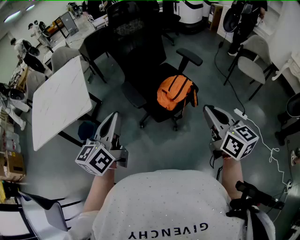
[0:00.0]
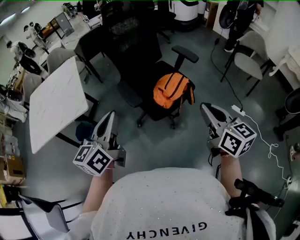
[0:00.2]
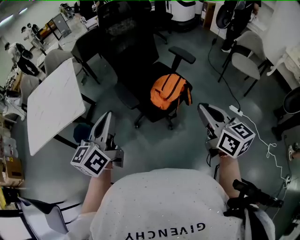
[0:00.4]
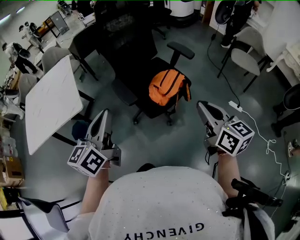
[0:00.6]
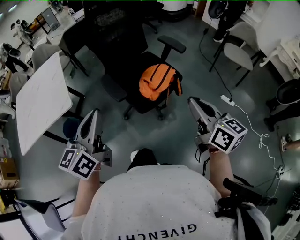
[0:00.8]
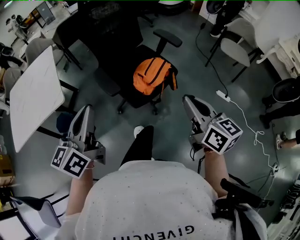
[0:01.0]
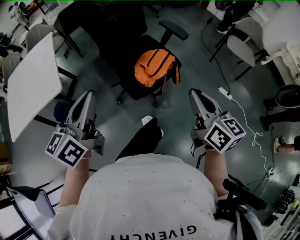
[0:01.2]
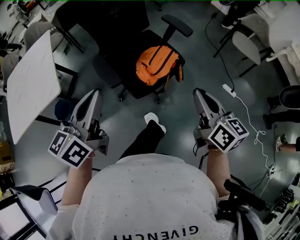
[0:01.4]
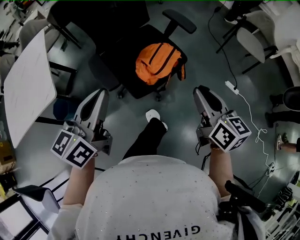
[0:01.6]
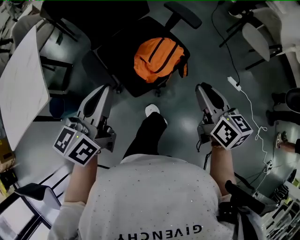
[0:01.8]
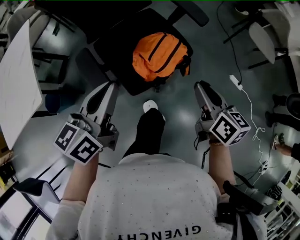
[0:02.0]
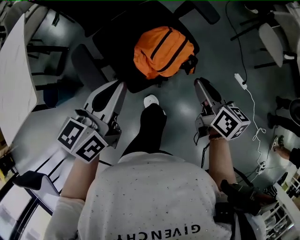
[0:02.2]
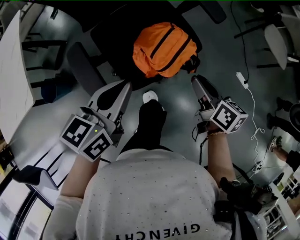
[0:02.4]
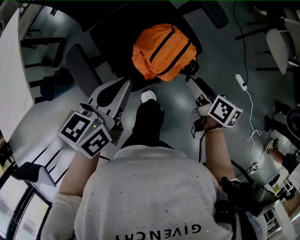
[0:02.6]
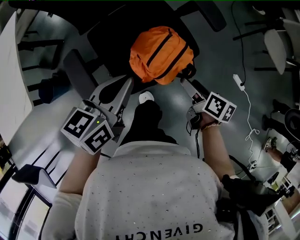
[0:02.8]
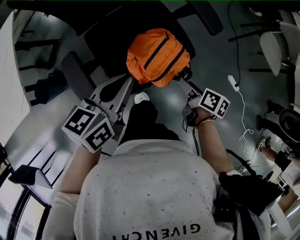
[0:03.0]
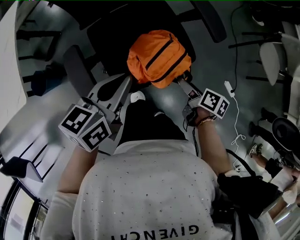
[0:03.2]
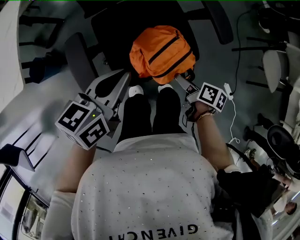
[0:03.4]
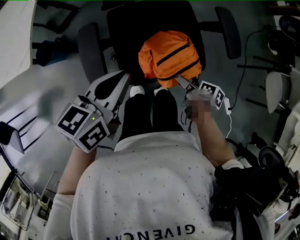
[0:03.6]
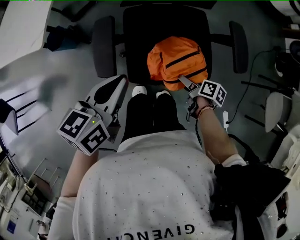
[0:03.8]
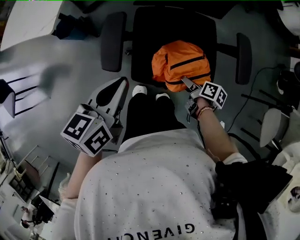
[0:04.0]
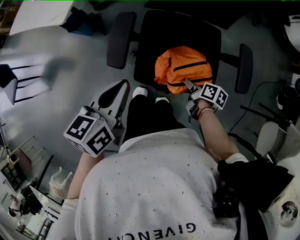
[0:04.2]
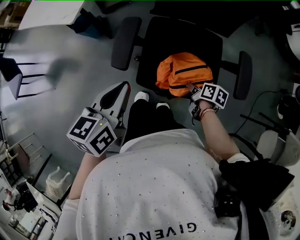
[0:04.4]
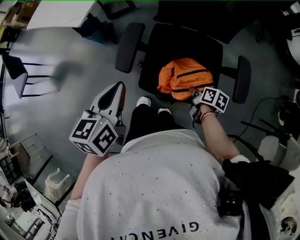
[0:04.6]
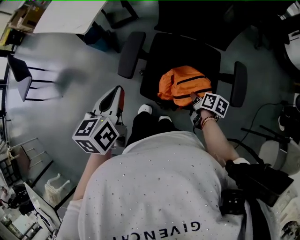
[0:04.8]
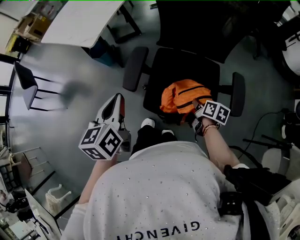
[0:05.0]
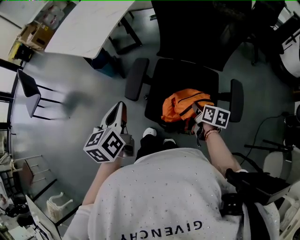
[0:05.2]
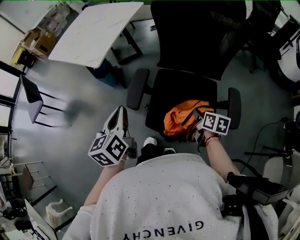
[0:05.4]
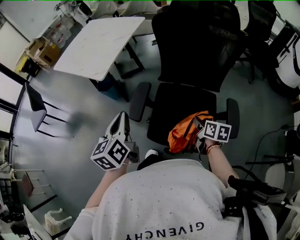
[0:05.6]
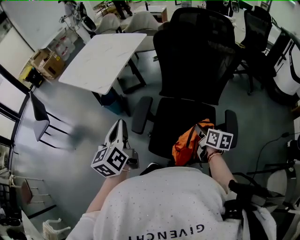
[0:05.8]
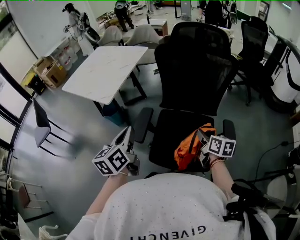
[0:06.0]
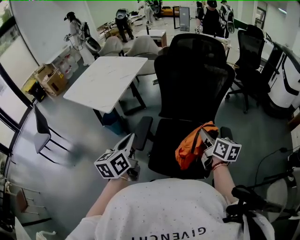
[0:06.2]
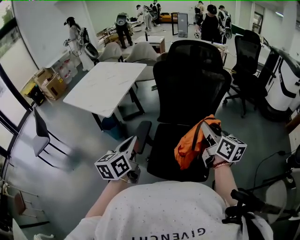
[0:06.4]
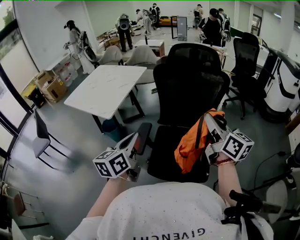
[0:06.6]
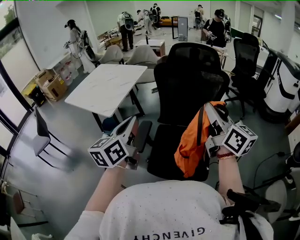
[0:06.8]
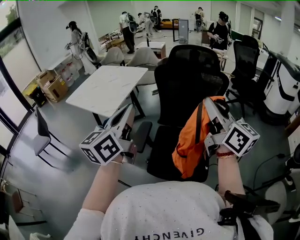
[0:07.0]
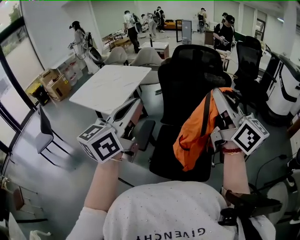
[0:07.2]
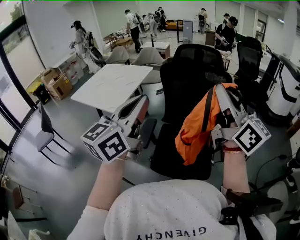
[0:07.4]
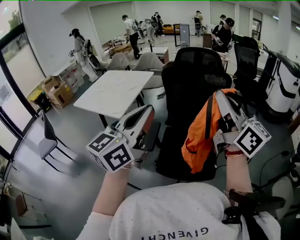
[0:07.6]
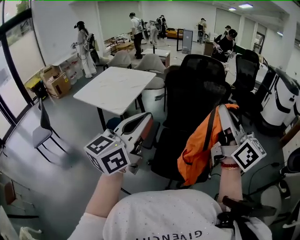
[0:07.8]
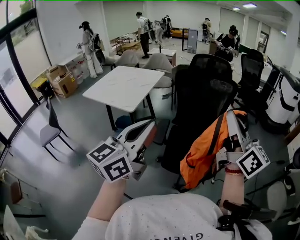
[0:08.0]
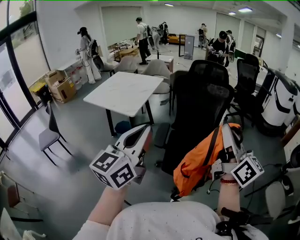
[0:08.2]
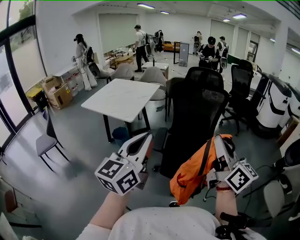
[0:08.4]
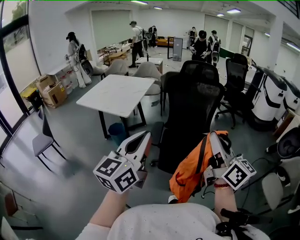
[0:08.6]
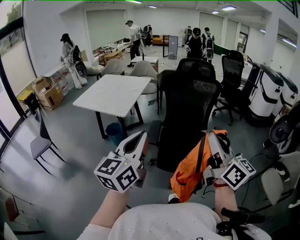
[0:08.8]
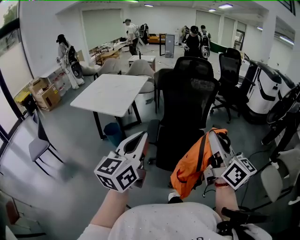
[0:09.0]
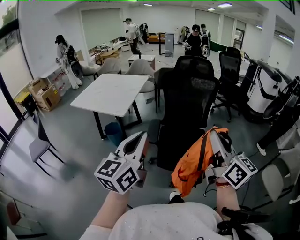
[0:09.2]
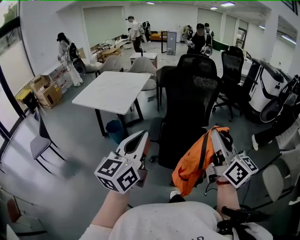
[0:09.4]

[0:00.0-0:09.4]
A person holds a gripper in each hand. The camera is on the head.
0:00.0 to 0:01.6: The left gripper shifts some 15 cm forward and to the right. The right gripper goes approximately 15 cm forward, downward and to the right.
0:01.6 to 0:03.2: The left gripper is displaced forward and downward by roughly 25 cm, and rotates roughly 20 degrees. The right gripper travels downward and forward by about 35 cm, rotates about 50 degrees, and opens.
0:03.2 to 0:04.8: The left gripper ends up some 15 cm from where it was, and turns by roughly 60 degrees; the right gripper changes place by some 10 cm, rotates approximately 40 degrees, and closes.
0:04.8 to 0:06.2: The left gripper is displaced upward by approximately 10 cm, while the right gripper is displaced upward by roughly 30 cm, and angles its fingers upward, by about 30 degrees.
0:06.2 to 0:07.8: Both grippers travel together upward and backward, about 30 cm. The left gripper changes its angle by about 40 degrees. Meanwhile the right gripper points its fingers approximately 40 degrees further upward.
0:07.8 to 0:09.4: The grippers both shift backward and to the left by approximately 15 cm.

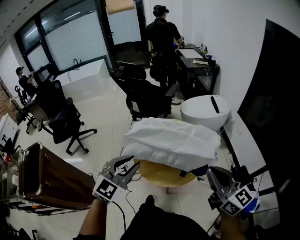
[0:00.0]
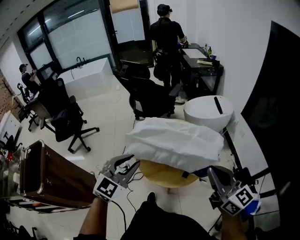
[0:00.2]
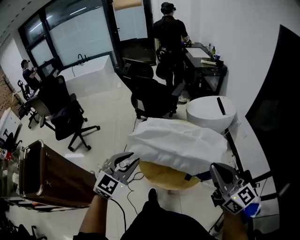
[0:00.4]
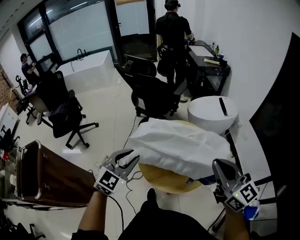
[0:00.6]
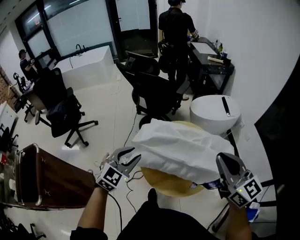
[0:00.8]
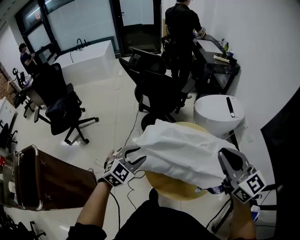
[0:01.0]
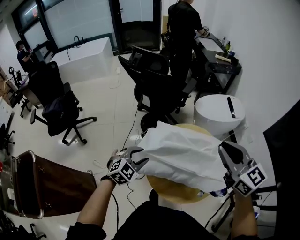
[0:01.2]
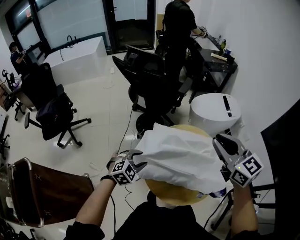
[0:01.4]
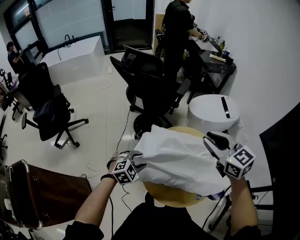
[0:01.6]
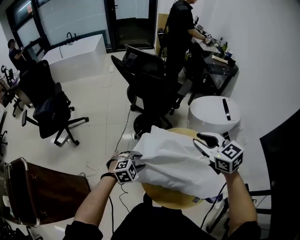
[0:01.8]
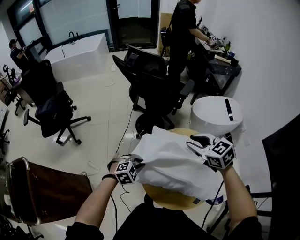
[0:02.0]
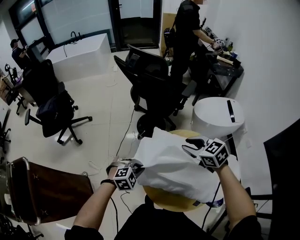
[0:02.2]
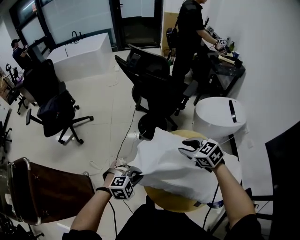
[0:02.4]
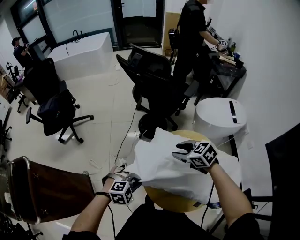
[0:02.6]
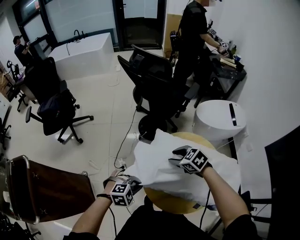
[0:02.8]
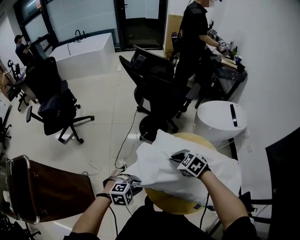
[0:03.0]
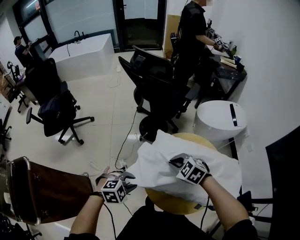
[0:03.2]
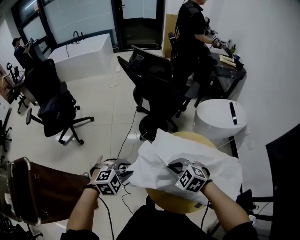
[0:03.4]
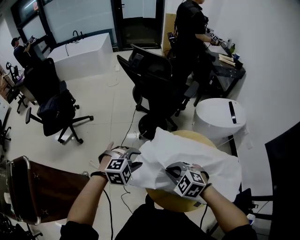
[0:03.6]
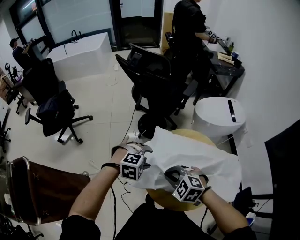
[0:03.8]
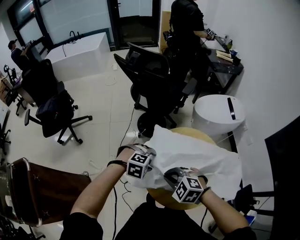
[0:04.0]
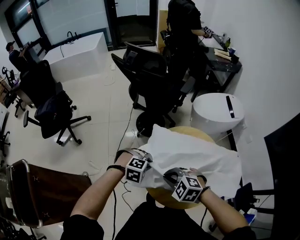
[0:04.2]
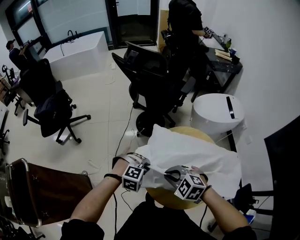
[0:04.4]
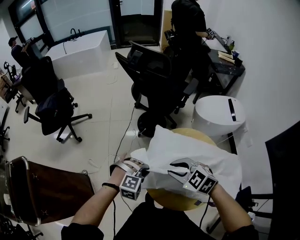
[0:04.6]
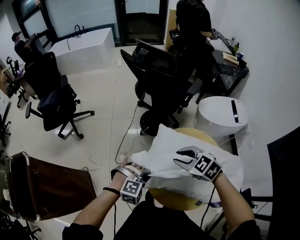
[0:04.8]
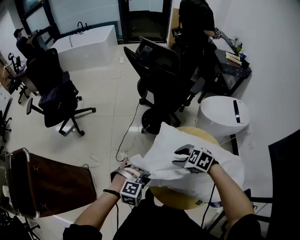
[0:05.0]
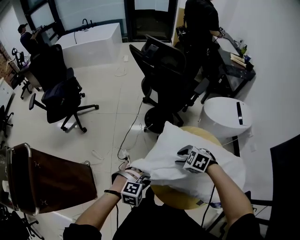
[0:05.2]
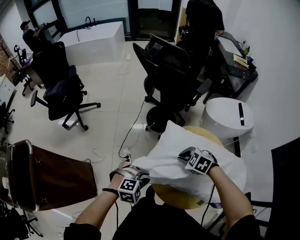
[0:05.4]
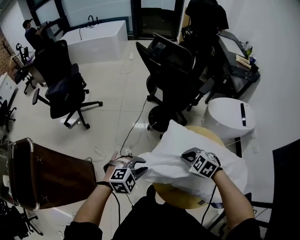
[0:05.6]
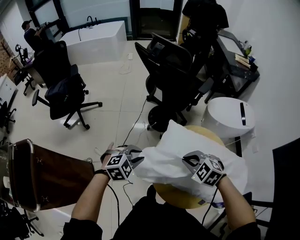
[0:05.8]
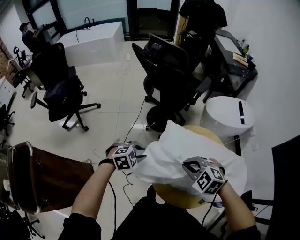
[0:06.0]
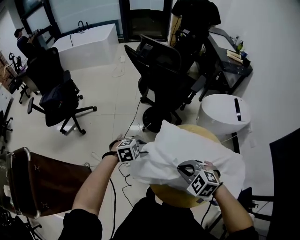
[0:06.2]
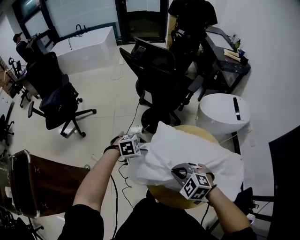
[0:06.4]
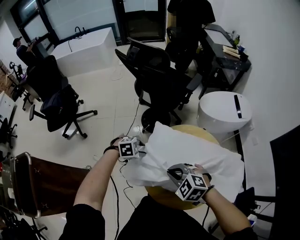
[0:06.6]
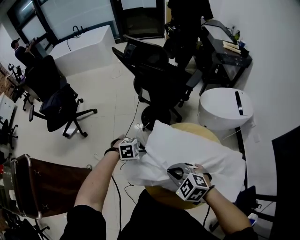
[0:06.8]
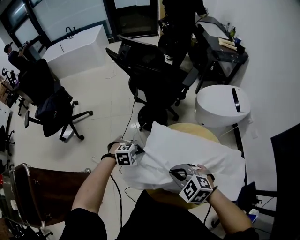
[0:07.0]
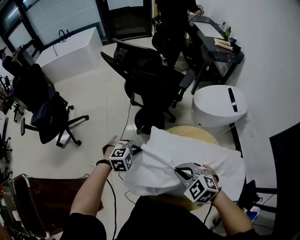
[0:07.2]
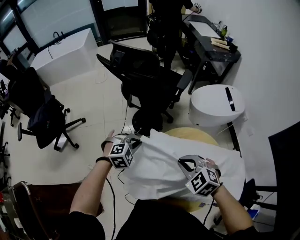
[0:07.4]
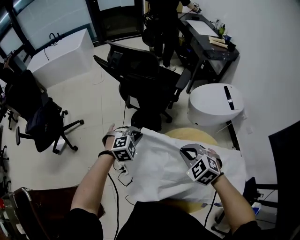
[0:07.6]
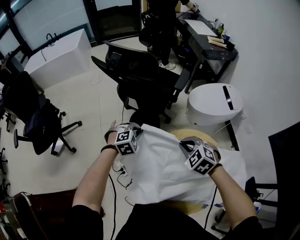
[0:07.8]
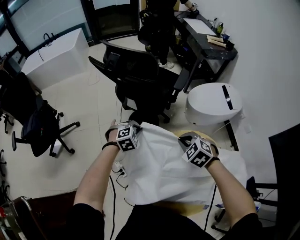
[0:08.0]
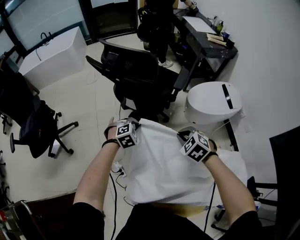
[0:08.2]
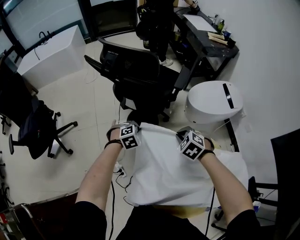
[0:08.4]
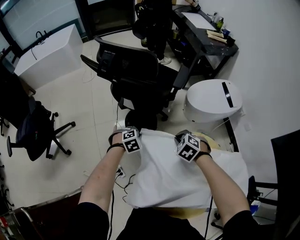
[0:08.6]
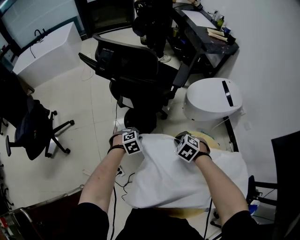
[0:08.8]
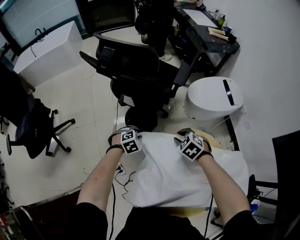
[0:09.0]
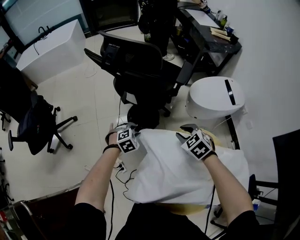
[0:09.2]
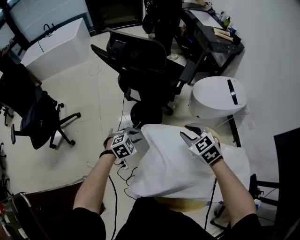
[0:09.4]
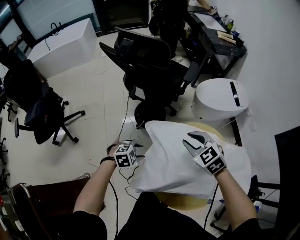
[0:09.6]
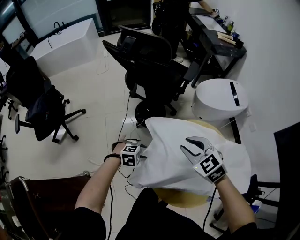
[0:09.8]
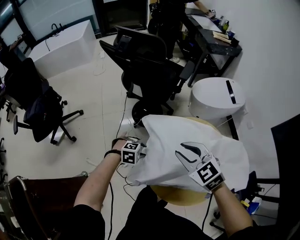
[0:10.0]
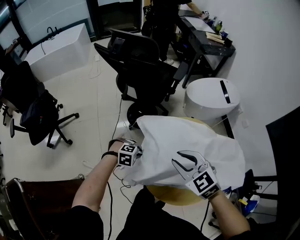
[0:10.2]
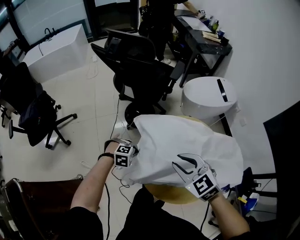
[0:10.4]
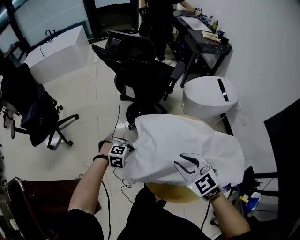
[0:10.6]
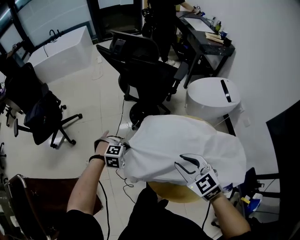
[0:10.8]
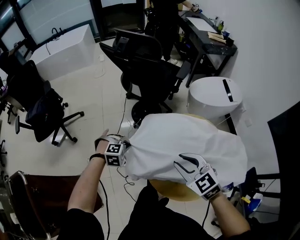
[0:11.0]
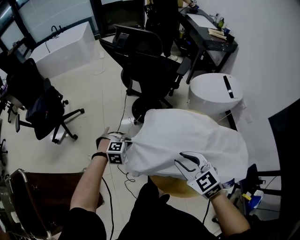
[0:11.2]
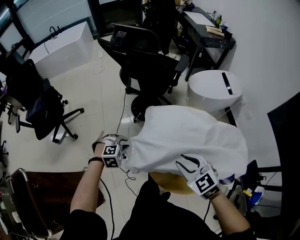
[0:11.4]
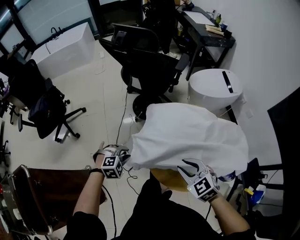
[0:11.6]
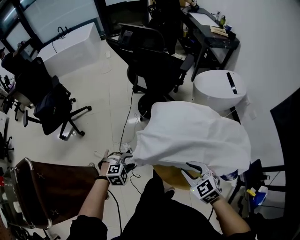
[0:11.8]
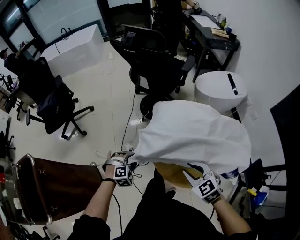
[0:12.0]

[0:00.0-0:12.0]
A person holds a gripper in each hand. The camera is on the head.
0:00.0 to 0:01.6: The left gripper is displaced downward, forward and to the left by about 35 cm, tilts its fingers approximately 40 degrees downward, and opens its fingers, while the right gripper moves forward and to the left, roughly 35 cm, turns by some 30 degrees, and opens up.
0:01.6 to 0:03.0: The left gripper shifts by some 10 cm, and closes, while the right gripper moves downward, roughly 25 cm, points its fingers some 40 degrees further downward, and opens, then closes again.
0:03.0 to 0:04.4: The right gripper ends up about 10 cm from where it was; the left gripper goes upward and returns, about 10 cm each way, turns by about 30 degrees, and opens, then closes again.
0:04.4 to 0:06.0: The left gripper moves approximately 10 cm, and changes its angle by approximately 30 degrees. The right gripper goes up and down, about 10 cm each way, reversing 2 times, and opens, then closes once more.
0:06.0 to 0:07.6: The left gripper moves about 20 cm, and closes its fingers. The right gripper shifts by some 15 cm, and swivels approximately 20 degrees.
0:07.6 to 0:09.0: The grippers both shift downward and forward by approximately 20 cm. The left gripper opens, while the right gripper opens its fingers.
0:09.0 to 0:10.4: The right gripper shifts by approximately 30 cm, and turns by some 30 degrees; the left gripper moves approximately 25 cm, rotates some 30 degrees, and closes.
0:10.4 to 0:12.0: The left gripper changes place by about 15 cm, swivels roughly 30 degrees, and opens its fingers; the right gripper moves about 15 cm.

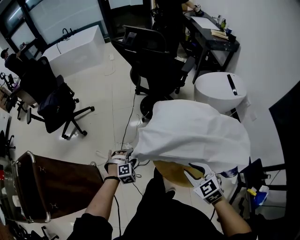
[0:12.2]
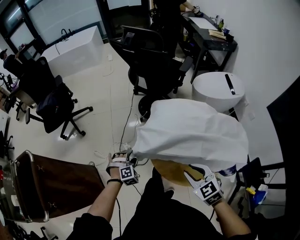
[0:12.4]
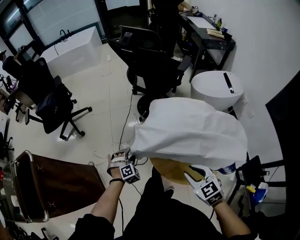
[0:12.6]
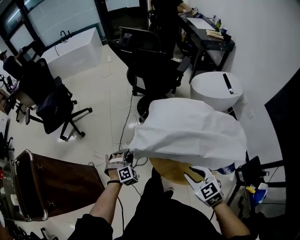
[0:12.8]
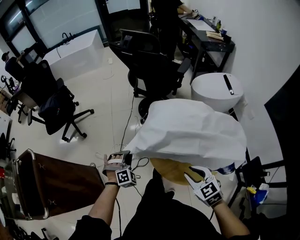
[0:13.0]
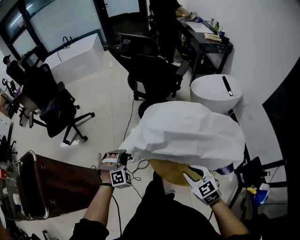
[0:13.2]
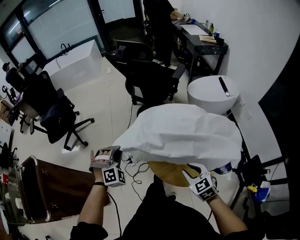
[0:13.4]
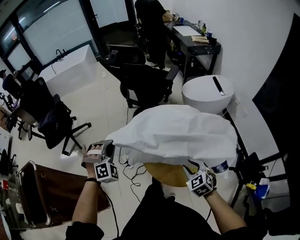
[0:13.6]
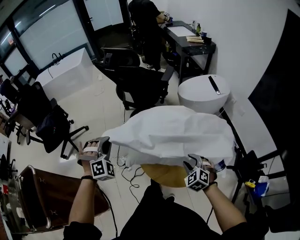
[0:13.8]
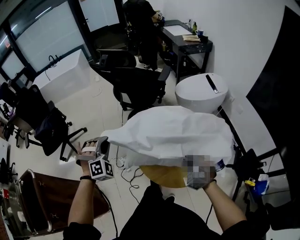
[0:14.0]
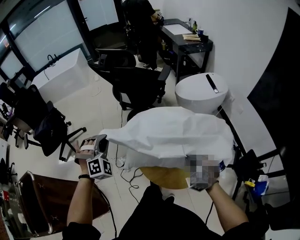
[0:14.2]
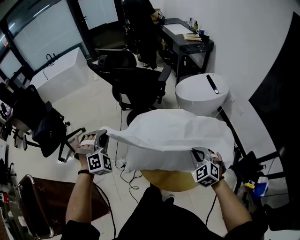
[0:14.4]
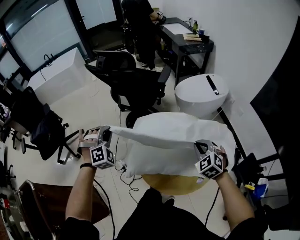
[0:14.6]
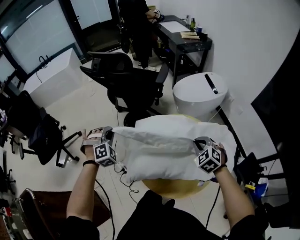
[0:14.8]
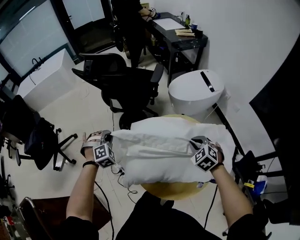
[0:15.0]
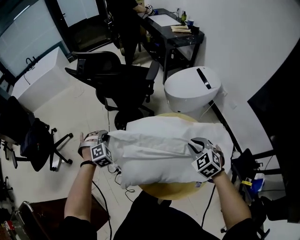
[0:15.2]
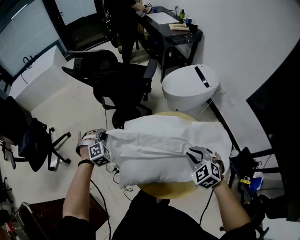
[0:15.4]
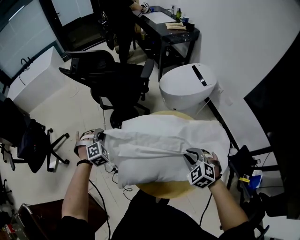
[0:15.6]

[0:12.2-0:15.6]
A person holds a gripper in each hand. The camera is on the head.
0:12.2 to 0:13.8: The right gripper is displaced to the right and downward by some 10 cm, and swivels roughly 30 degrees. The left gripper goes roughly 25 cm upward, turns by some 30 degrees, and closes up.
0:13.8 to 0:15.6: The left gripper travels forward and downward by some 25 cm, and rotates roughly 20 degrees. The right gripper shifts some 10 cm forward.
